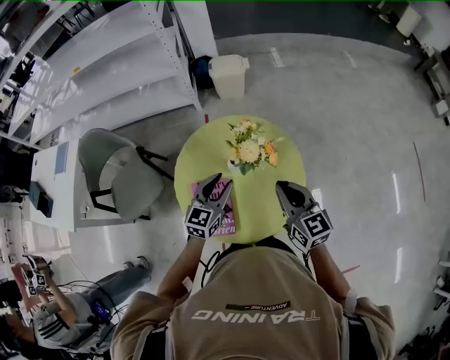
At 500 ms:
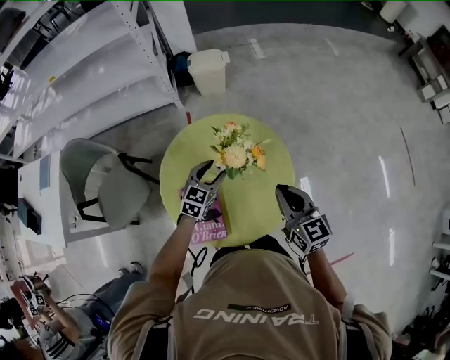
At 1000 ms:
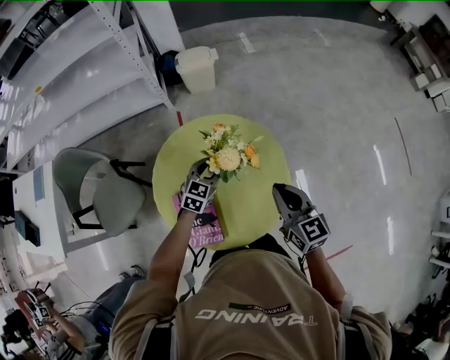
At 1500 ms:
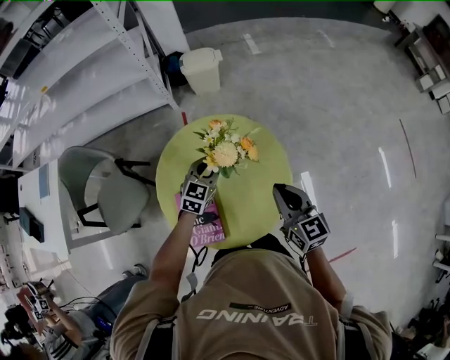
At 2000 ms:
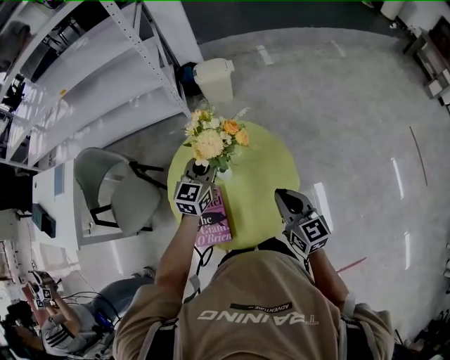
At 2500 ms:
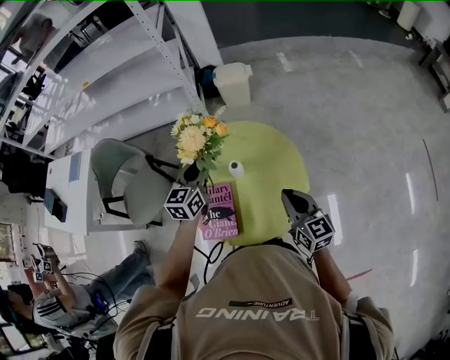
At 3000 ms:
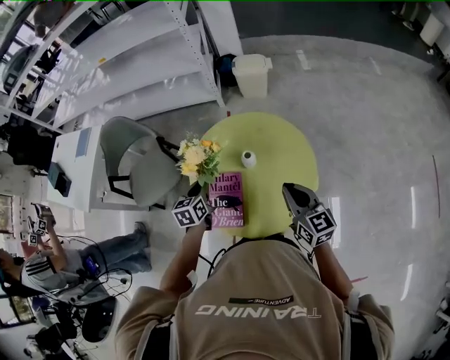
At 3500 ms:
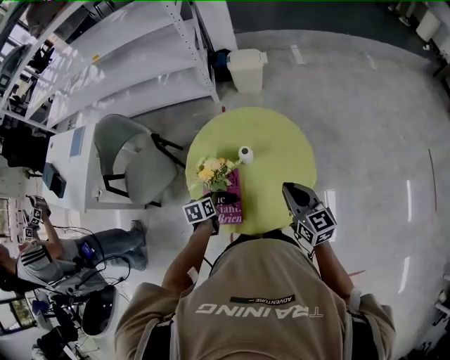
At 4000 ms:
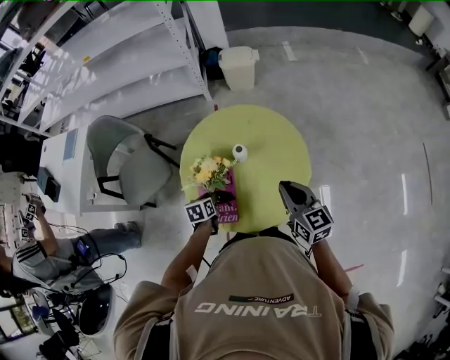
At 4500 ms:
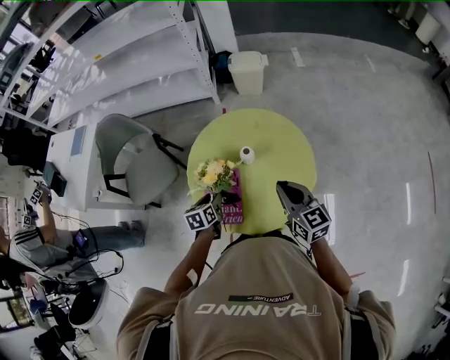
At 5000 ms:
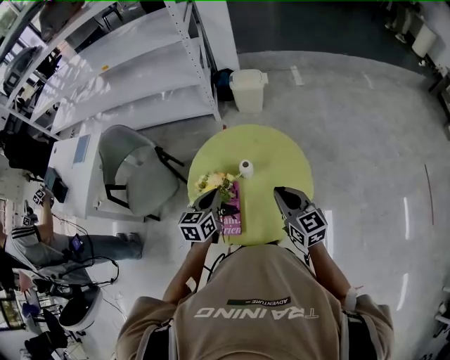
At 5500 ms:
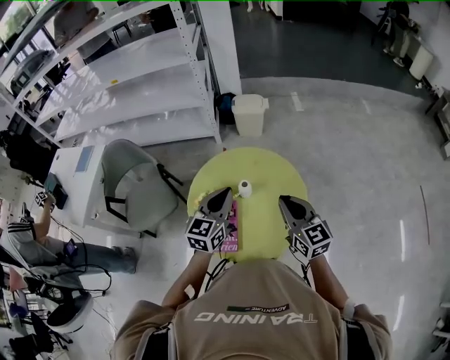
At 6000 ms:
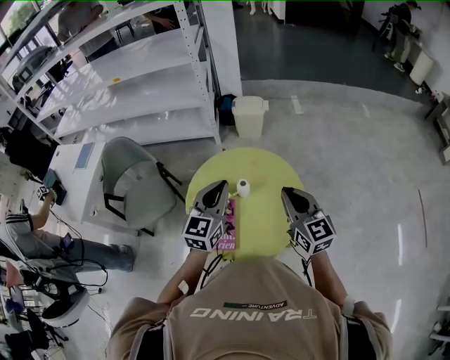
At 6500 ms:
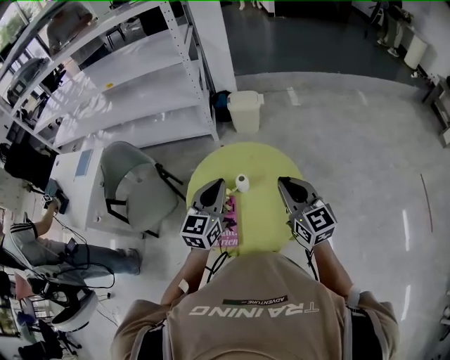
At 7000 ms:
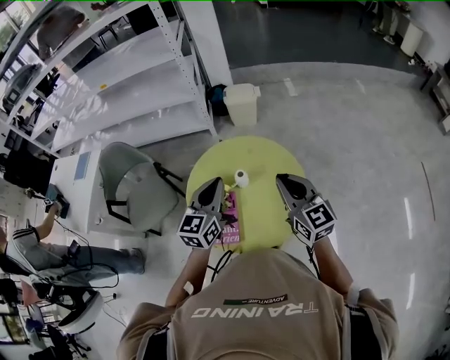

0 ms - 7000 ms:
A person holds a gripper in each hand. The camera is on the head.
0 ms - 2000 ms: The right gripper shifts by approximately 5 cm; the left gripper goes about 10 cm forward, moves some 10 cm downward and comes back, and opens and closes again.
2000 ms - 3500 ms: The left gripper heads downward, to the left and backward, covering approximately 30 cm, and angles its fingers downward, by approximately 40 degrees.
3500 ms - 5000 ms: The left gripper travels upward by approximately 15 cm, turns by approximately 30 degrees, and opens and closes again.
5000 ms - 7000 ms: Both grippers move upward, about 15 cm. The left gripper swivels some 20 degrees.

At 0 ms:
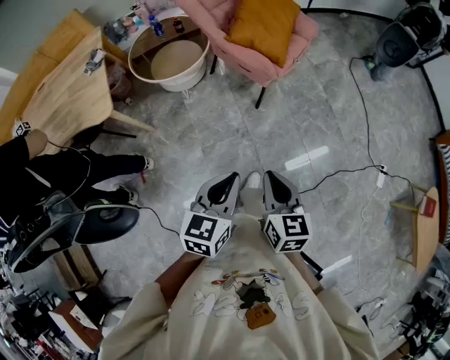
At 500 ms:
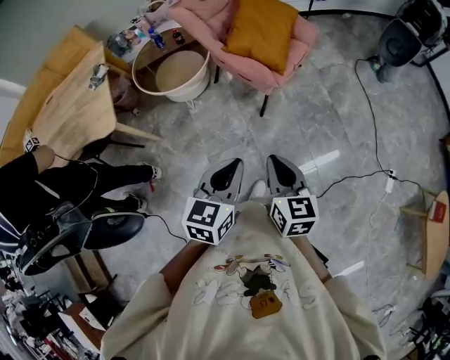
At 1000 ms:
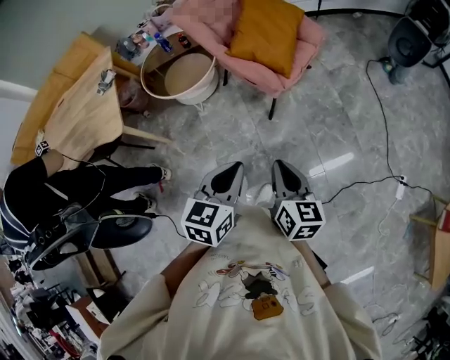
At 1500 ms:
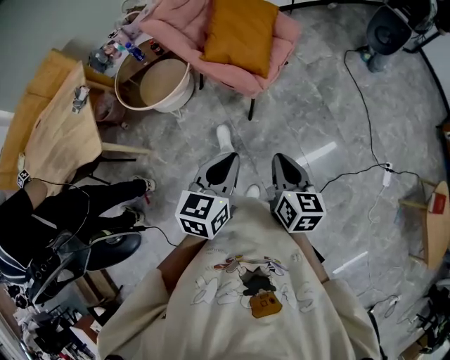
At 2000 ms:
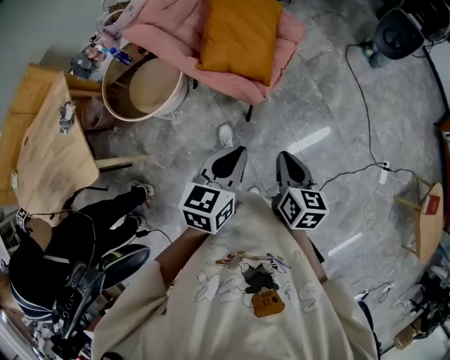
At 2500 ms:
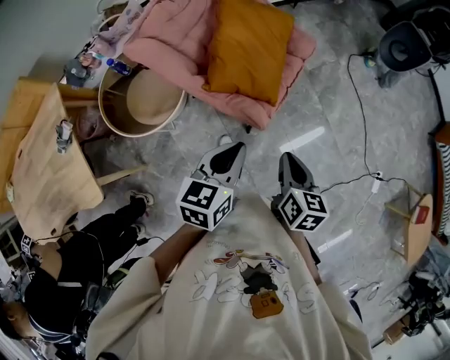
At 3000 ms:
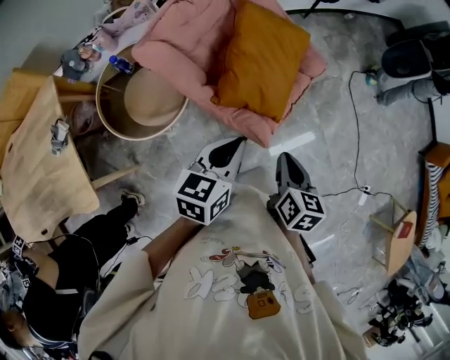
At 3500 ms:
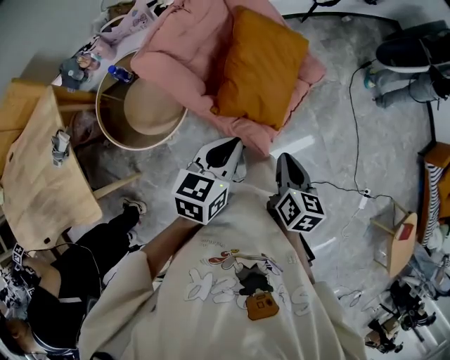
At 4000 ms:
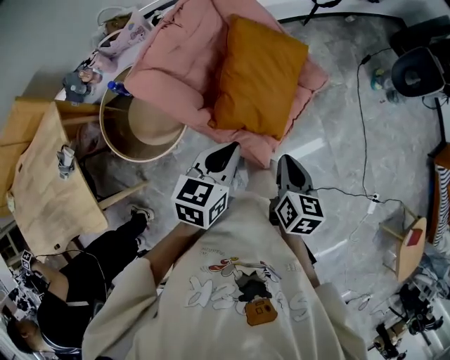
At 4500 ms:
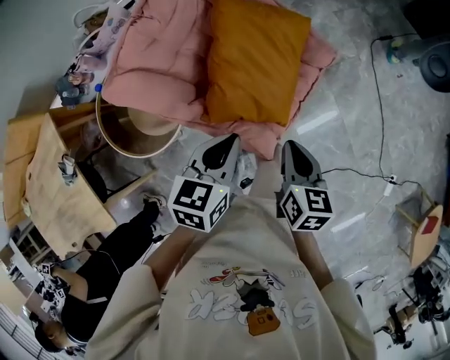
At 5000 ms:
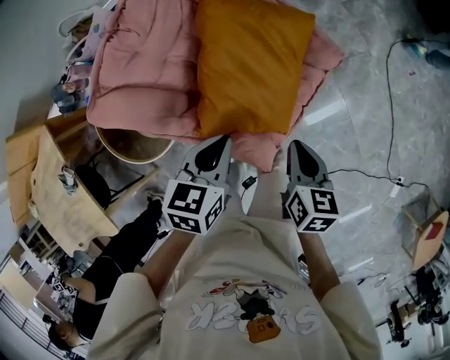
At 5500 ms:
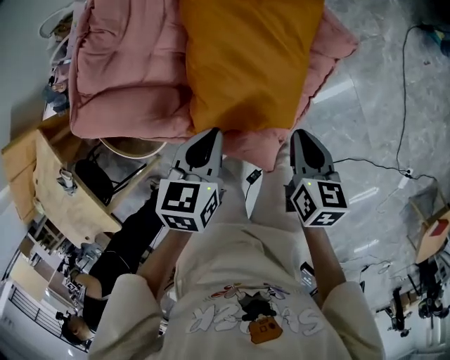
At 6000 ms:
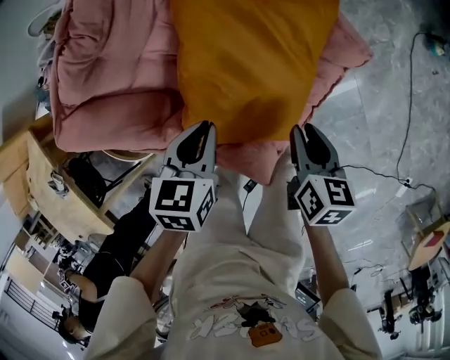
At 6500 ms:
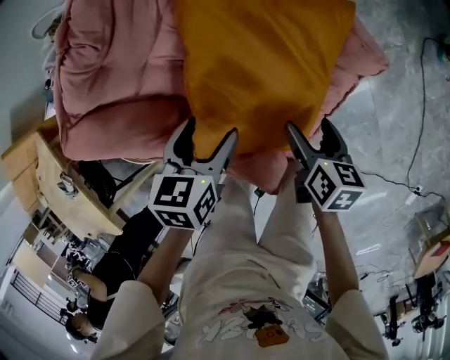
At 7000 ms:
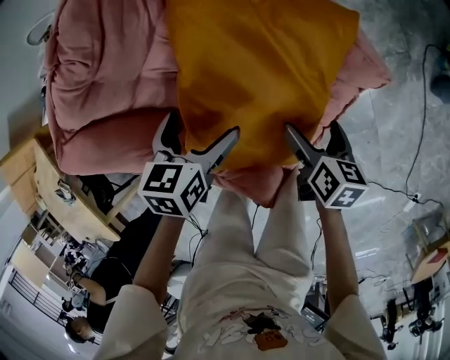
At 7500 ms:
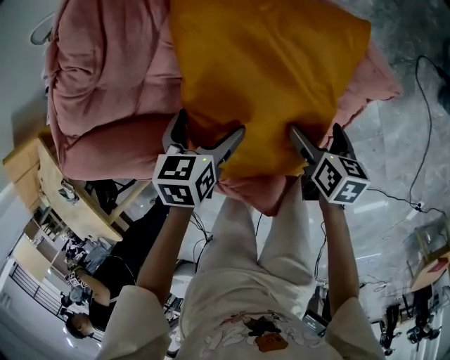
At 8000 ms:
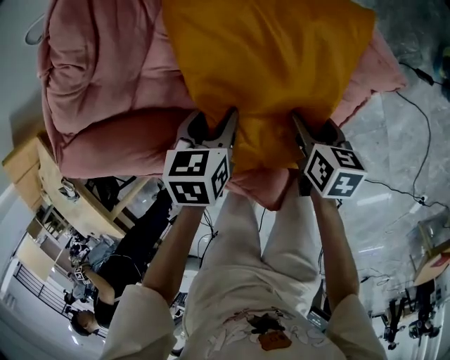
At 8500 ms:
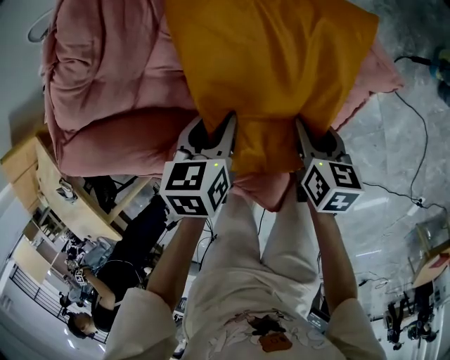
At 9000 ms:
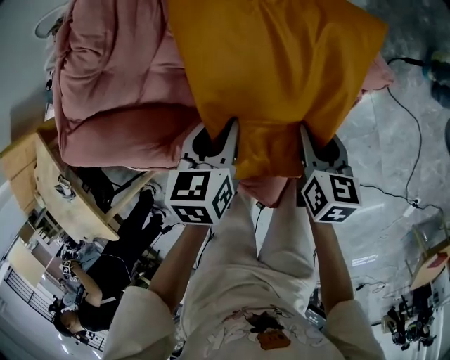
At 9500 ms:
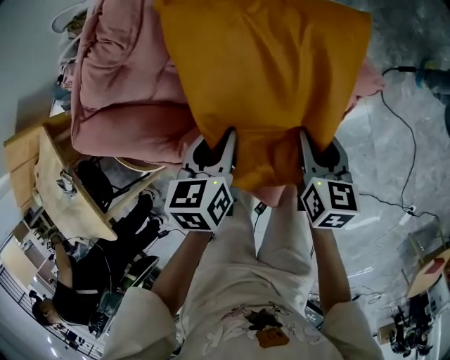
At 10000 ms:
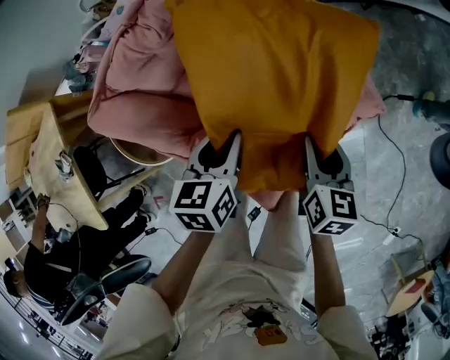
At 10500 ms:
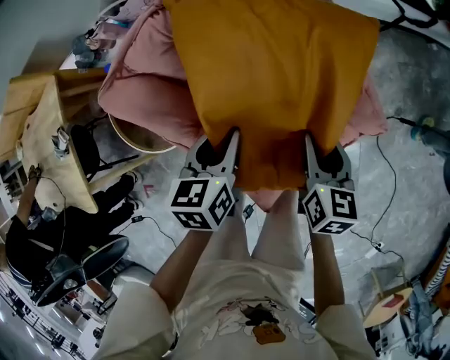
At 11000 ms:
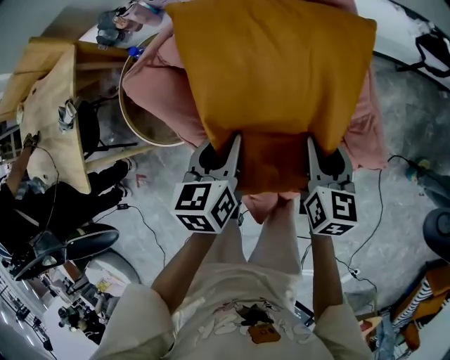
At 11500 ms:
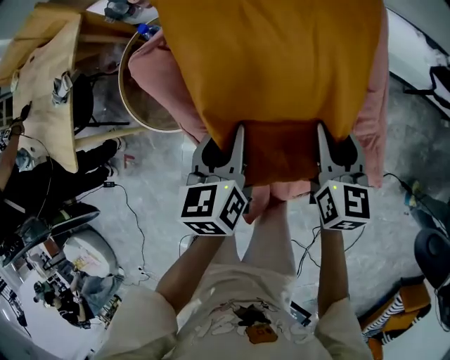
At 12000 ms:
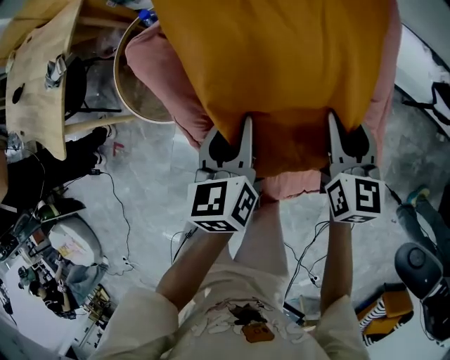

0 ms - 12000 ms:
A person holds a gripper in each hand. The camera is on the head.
0 ms - 2000 ms: The grippers both shift forward by about 35 cm.
2000 ms - 4000 ms: Both grippers travel together forward and to the left, about 30 cm.
4000 ms - 6000 ms: Both grippers move downward and forward, roughly 30 cm. The left gripper swivels some 30 degrees.
6000 ms - 8000 ms: The two grippers go approximately 15 cm downward and forward. The right gripper opens, then closes once more; the left gripper opens, then closes once more.
8000 ms - 10000 ms: Both grippers travel together upward, roughly 20 cm. The right gripper rotates about 30 degrees. The left gripper changes its angle by about 20 degrees.
10000 ms - 12000 ms: The right gripper shifts by about 25 cm, and swivels some 40 degrees. Meanwhile the left gripper moves roughly 10 cm, and changes its angle by about 40 degrees.

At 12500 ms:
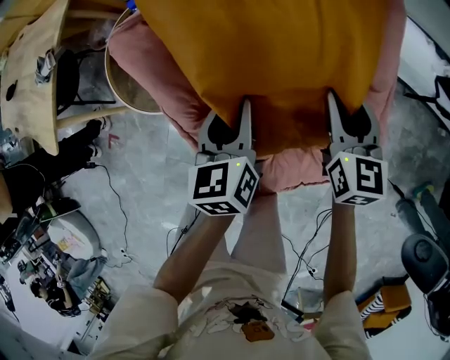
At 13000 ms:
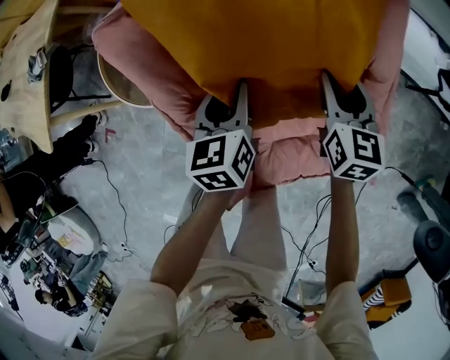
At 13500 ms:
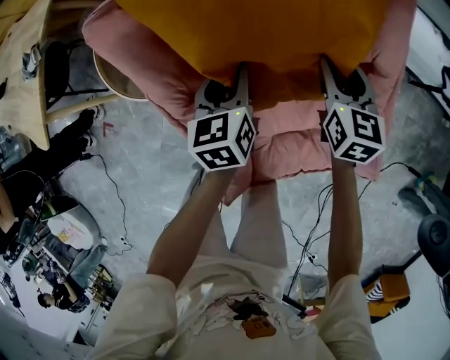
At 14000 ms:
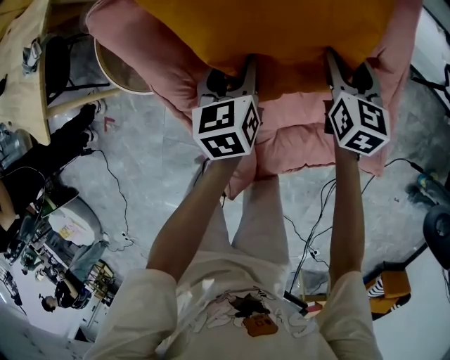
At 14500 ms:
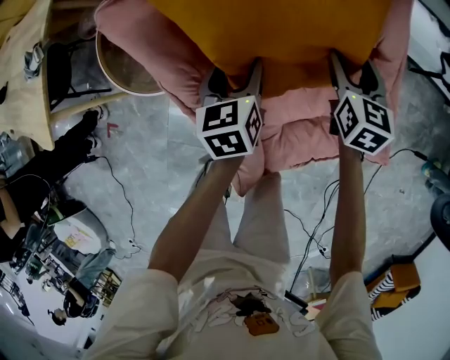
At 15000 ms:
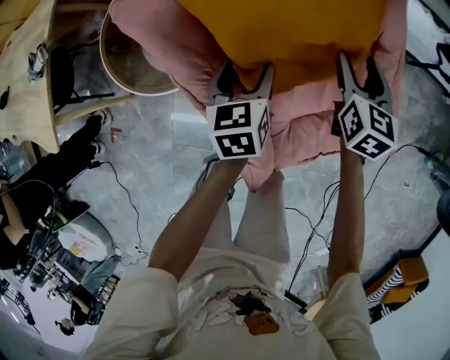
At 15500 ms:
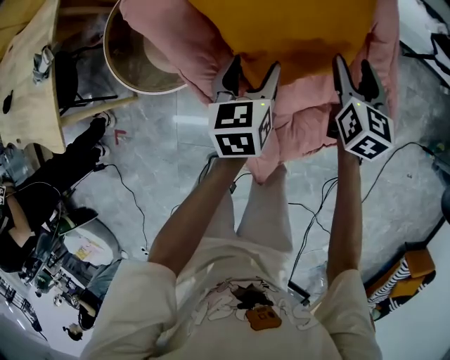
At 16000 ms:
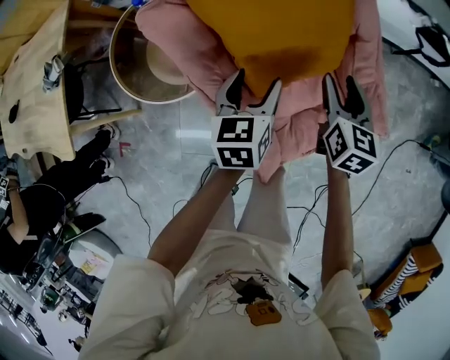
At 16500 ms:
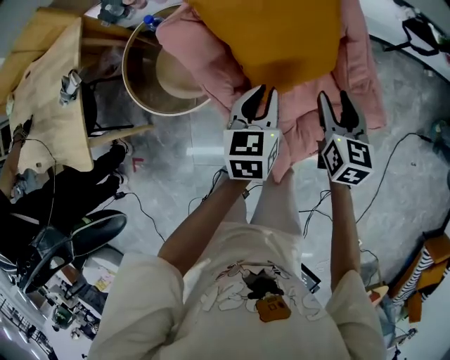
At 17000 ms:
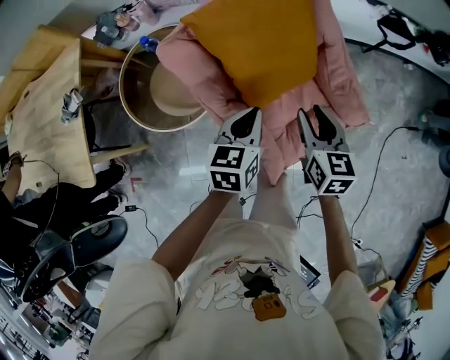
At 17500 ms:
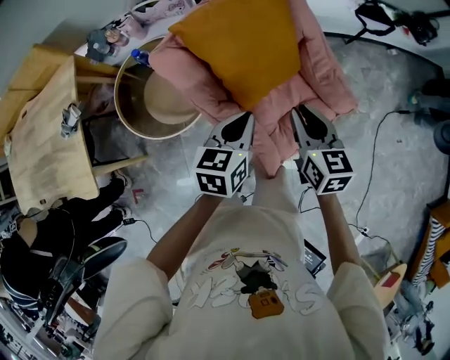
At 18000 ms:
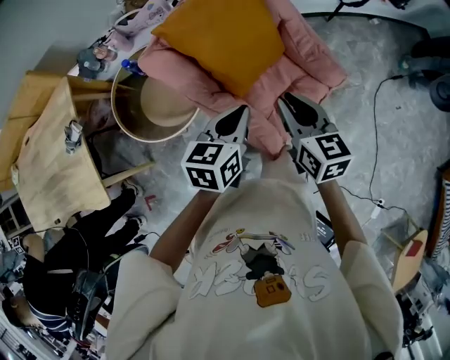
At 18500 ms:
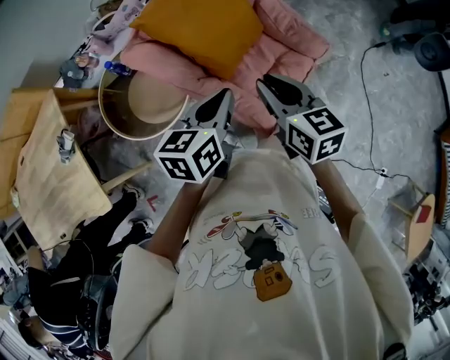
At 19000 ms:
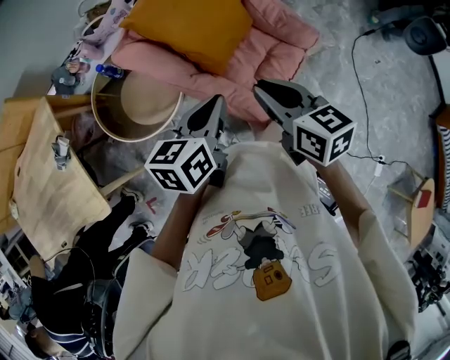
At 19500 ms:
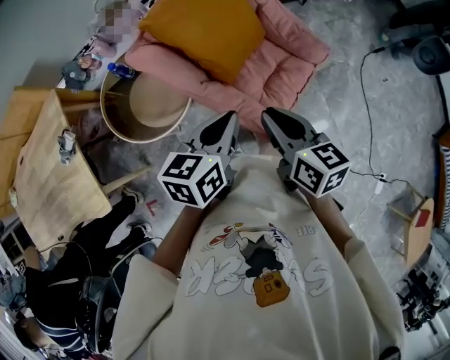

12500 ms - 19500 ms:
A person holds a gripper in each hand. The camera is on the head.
12500 ms - 14500 ms: The grippers both shift downward by some 10 cm.
14500 ms - 16000 ms: The left gripper heads upward and backward, covering about 15 cm. Meanwhile the right gripper moves backward and upward, some 15 cm.
16000 ms - 17500 ms: The right gripper travels backward, upward and to the left by roughly 20 cm; the left gripper goes roughly 20 cm upward and backward, turns by some 20 degrees, and closes its fingers.
17500 ms - 19500 ms: The right gripper moves backward, about 15 cm; the left gripper goes approximately 15 cm backward and upward.
